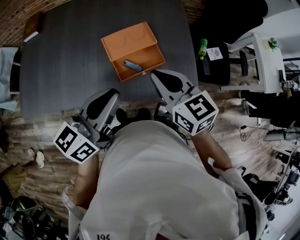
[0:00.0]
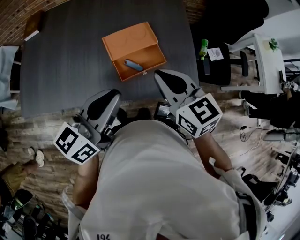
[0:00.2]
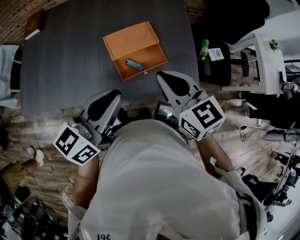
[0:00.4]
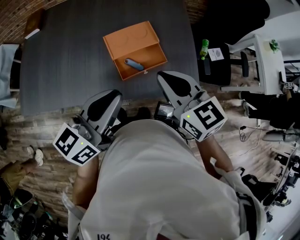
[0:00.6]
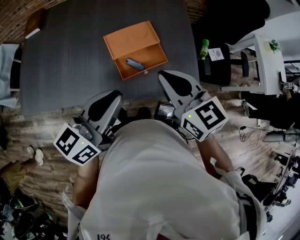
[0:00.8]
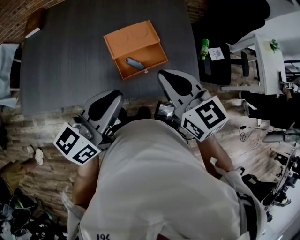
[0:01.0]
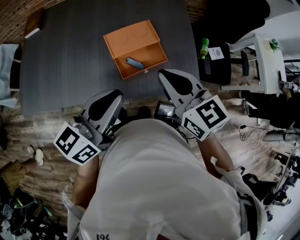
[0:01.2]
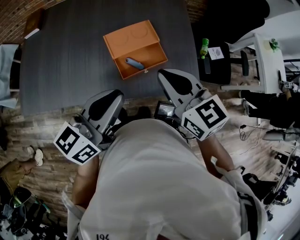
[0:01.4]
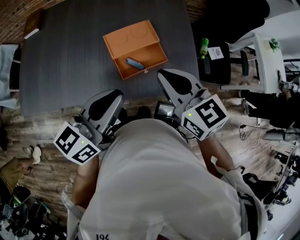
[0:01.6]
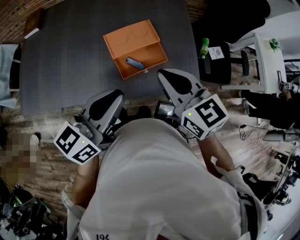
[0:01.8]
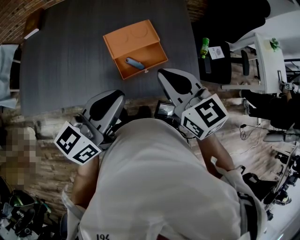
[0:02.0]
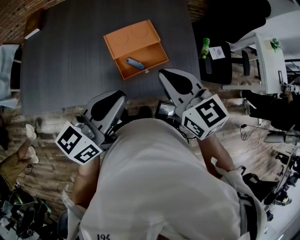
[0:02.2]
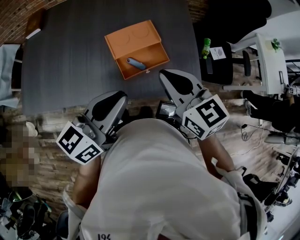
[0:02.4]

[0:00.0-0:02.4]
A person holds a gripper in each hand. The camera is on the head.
0:00.0 to 0:01.2: The grippers move only a little.
0:01.2 to 0:02.4: Both grippers stay about where they are.

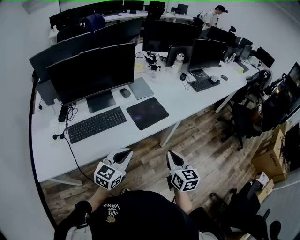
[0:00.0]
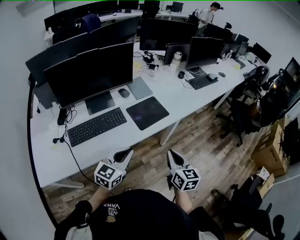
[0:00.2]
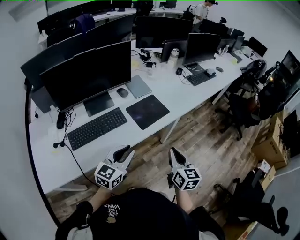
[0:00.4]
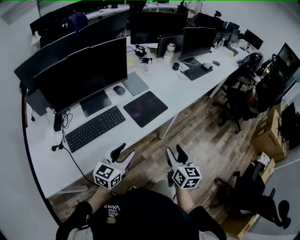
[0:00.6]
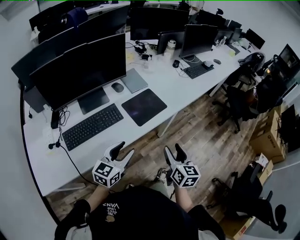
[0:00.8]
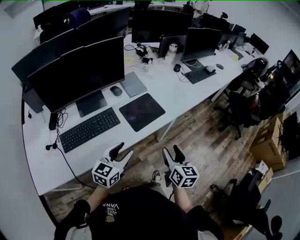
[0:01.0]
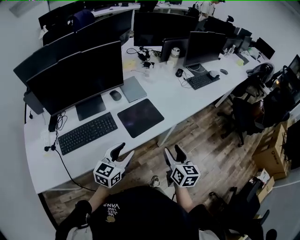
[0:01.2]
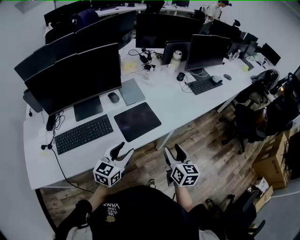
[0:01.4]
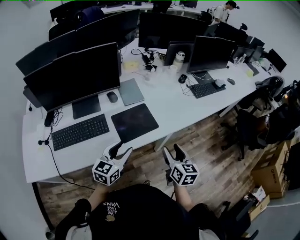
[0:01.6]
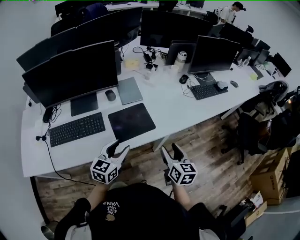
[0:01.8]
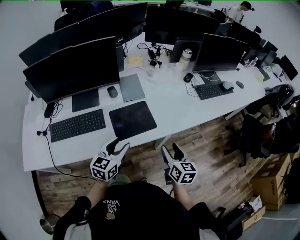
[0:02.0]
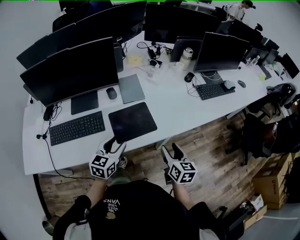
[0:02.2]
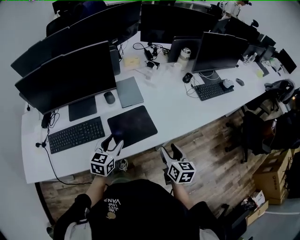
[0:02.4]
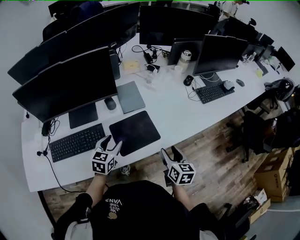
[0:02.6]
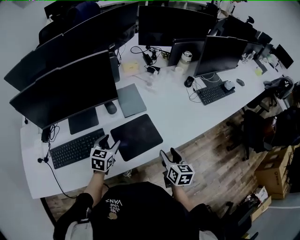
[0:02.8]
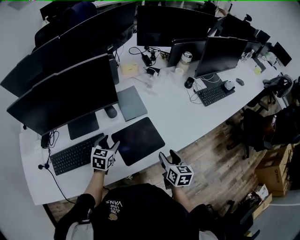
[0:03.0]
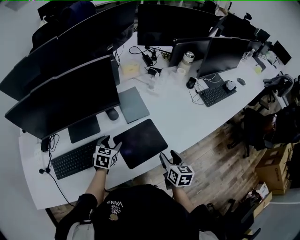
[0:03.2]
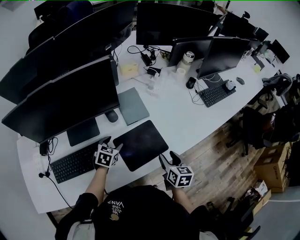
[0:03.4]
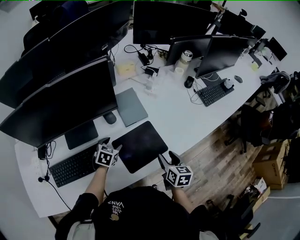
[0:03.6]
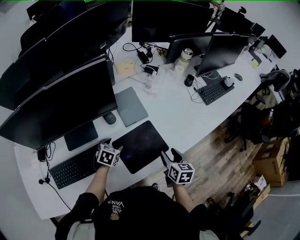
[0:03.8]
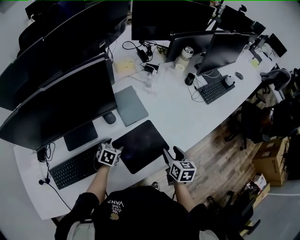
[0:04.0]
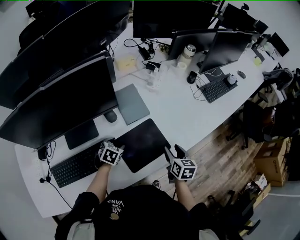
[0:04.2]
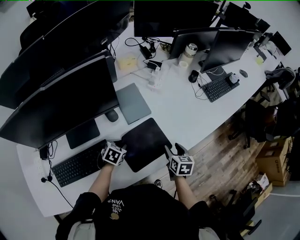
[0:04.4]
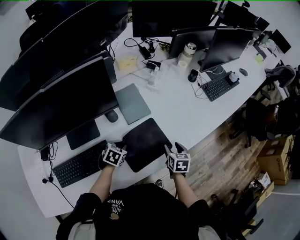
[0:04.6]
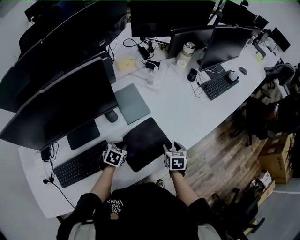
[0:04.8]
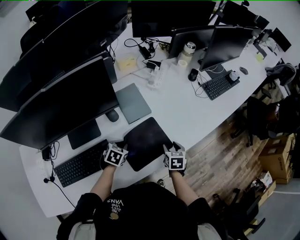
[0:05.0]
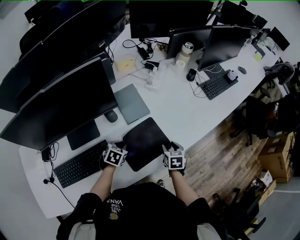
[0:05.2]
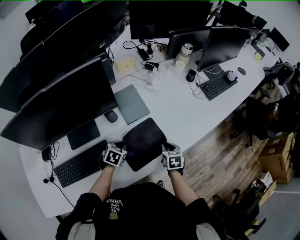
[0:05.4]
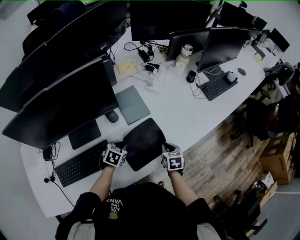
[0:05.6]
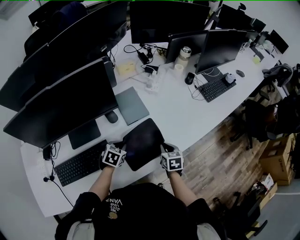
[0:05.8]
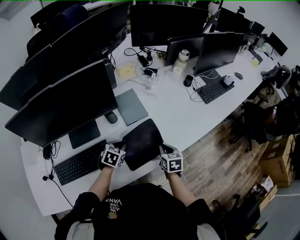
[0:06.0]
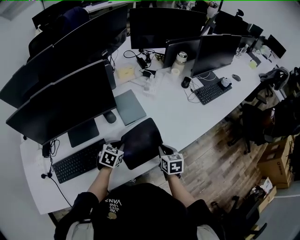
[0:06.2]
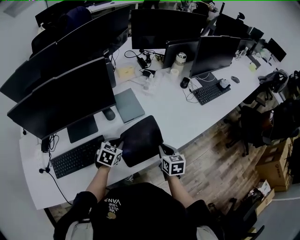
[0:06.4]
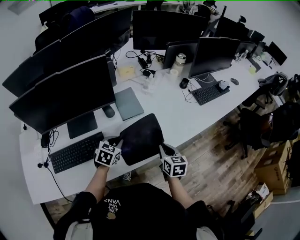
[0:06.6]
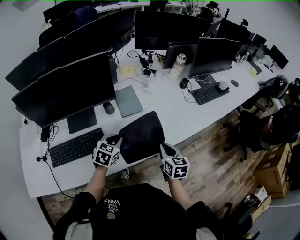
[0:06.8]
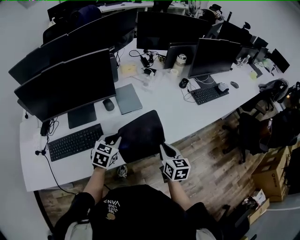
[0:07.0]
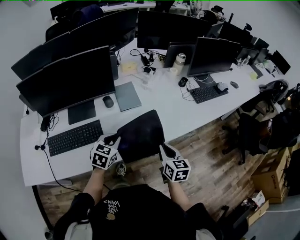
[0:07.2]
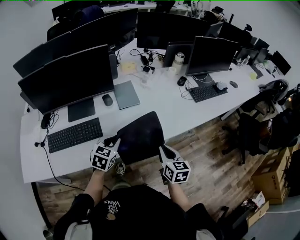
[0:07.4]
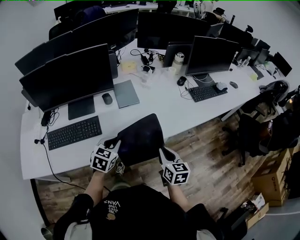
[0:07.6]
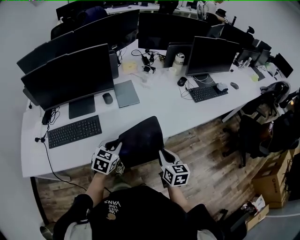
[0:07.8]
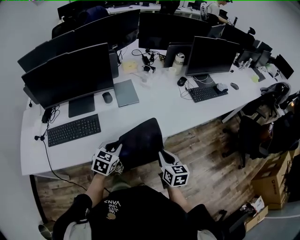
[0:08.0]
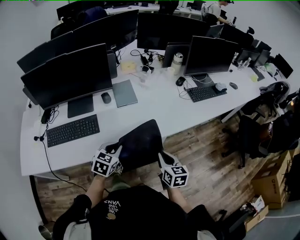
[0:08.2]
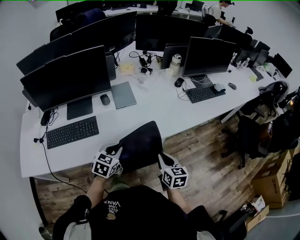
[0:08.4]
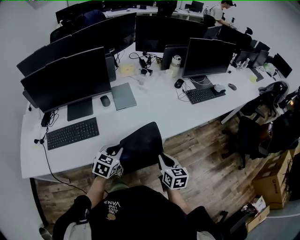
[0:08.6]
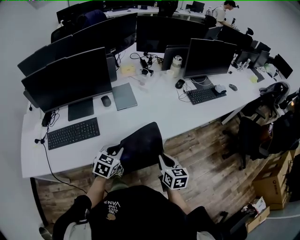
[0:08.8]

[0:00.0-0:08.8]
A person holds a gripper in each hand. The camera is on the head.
0:00.0 to 0:01.4: Both grippers travel together forward, approximately 15 cm. The right gripper opens, while the left gripper opens up.
0:01.4 to 0:03.0: The right gripper moves forward and downward, roughly 15 cm. The left gripper travels forward, downward and to the left by roughly 25 cm, and turns by about 30 degrees.
0:03.0 to 0:04.4: The left gripper travels downward by roughly 10 cm, swivels approximately 30 degrees, and closes, while the right gripper travels downward and forward by about 10 cm.
0:04.4 to 0:05.8: The right gripper closes.
0:05.8 to 0:07.4: Both grippers move upward, backward and to the right, approximately 20 cm. The left gripper swivels approximately 20 degrees, while the right gripper changes its angle by roughly 20 degrees.
0:07.4 to 0:08.8: The right gripper changes place by roughly 5 cm, while the left gripper changes place by about 5 cm.

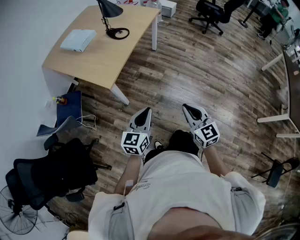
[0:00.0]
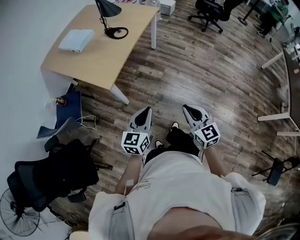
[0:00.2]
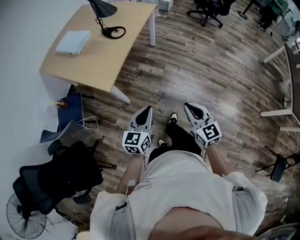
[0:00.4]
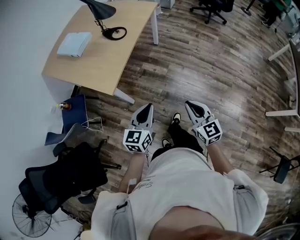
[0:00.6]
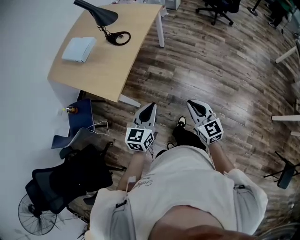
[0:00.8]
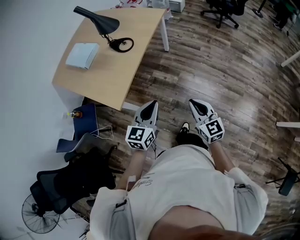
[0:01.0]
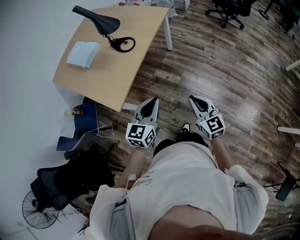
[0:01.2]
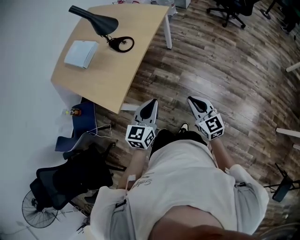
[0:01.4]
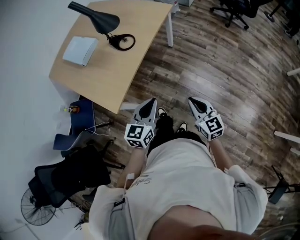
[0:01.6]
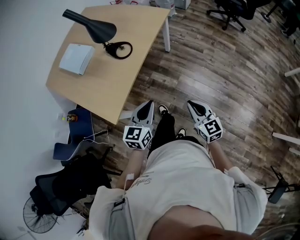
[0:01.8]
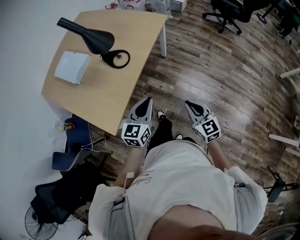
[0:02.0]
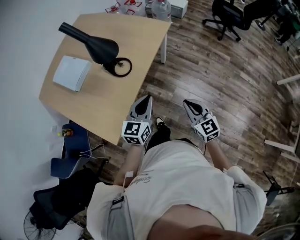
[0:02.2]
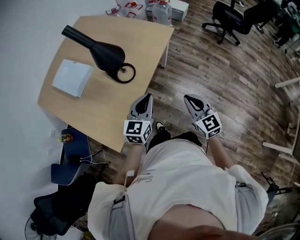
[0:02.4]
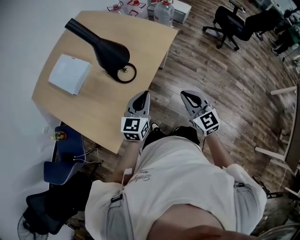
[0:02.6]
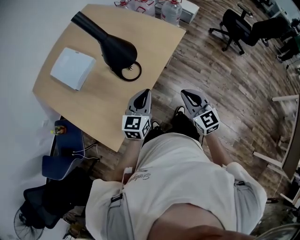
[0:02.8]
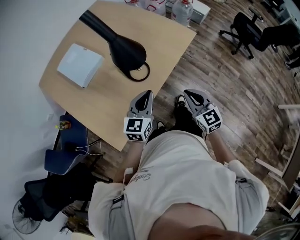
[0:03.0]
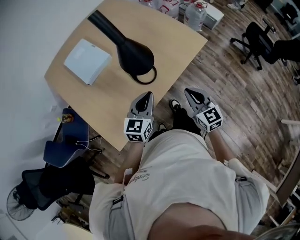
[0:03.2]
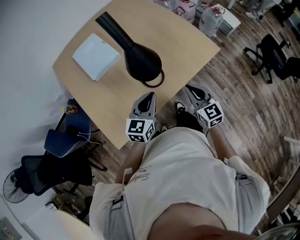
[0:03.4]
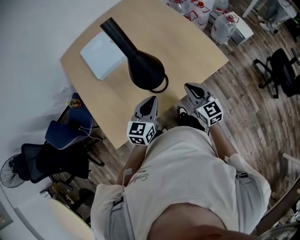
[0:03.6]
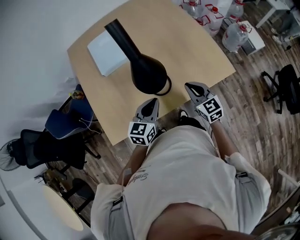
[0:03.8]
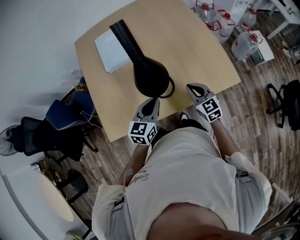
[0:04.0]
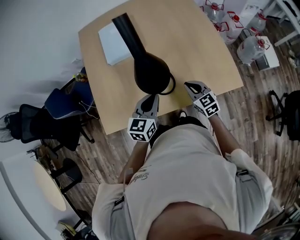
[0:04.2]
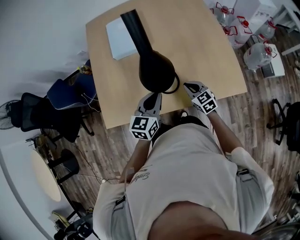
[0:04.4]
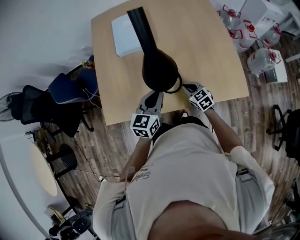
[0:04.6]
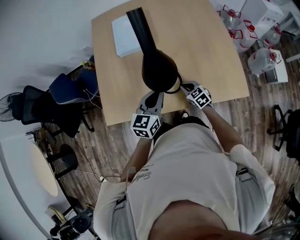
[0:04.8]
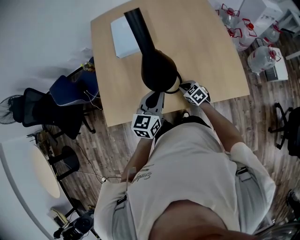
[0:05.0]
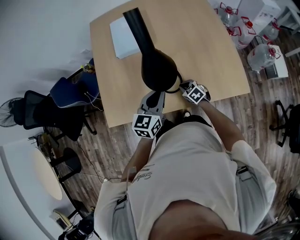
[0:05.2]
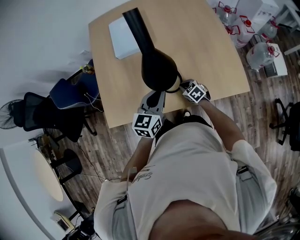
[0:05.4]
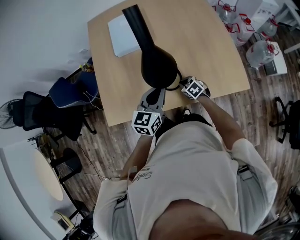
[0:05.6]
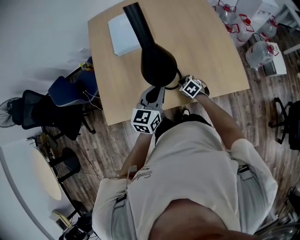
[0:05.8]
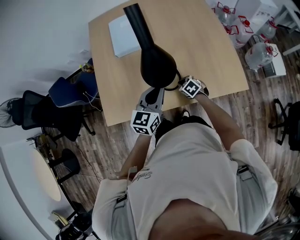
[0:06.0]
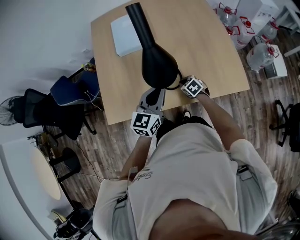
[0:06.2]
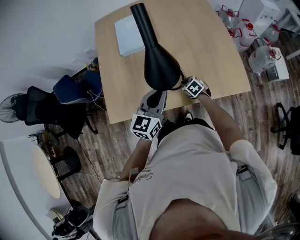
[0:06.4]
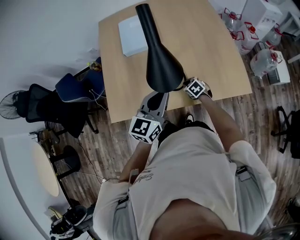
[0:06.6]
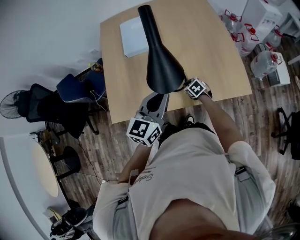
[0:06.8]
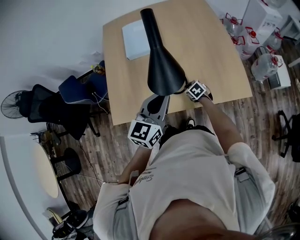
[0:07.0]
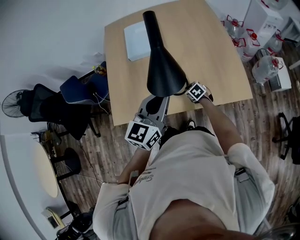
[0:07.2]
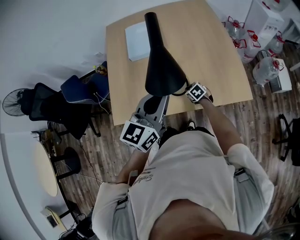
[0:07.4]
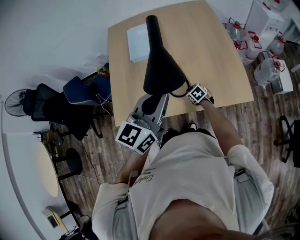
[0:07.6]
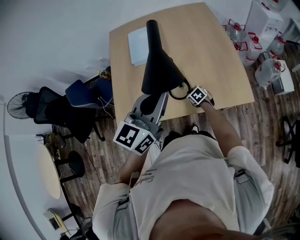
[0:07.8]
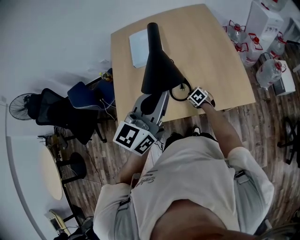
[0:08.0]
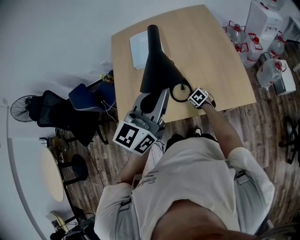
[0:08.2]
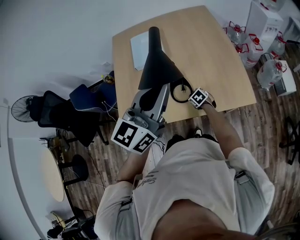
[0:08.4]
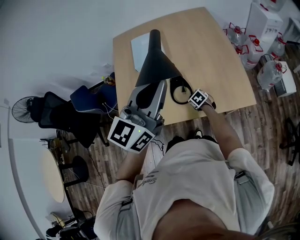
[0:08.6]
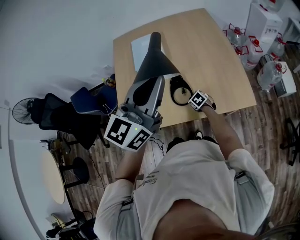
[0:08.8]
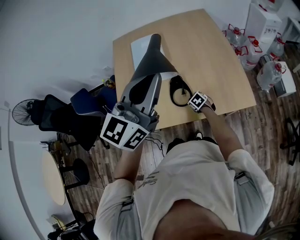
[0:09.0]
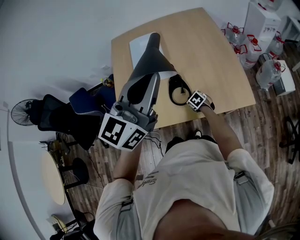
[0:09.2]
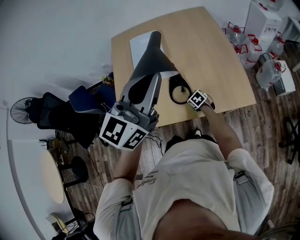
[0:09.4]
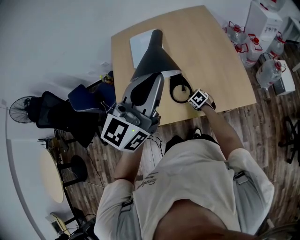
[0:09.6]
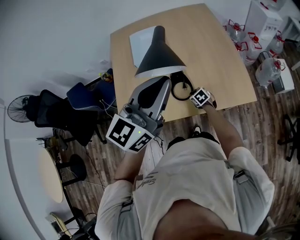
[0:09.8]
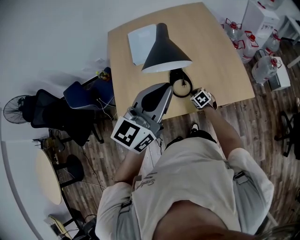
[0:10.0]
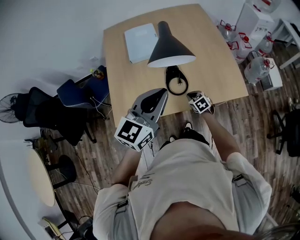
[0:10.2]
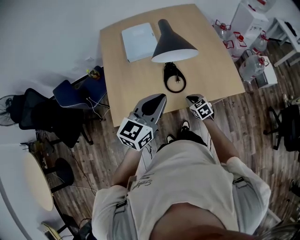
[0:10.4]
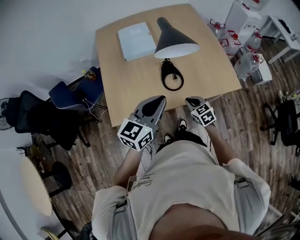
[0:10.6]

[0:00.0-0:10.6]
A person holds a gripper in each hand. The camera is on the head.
0:00.0 to 0:01.6: Both grippers travel together forward, approximately 30 cm.
0:01.6 to 0:03.0: The grippers both shift forward by roughly 35 cm.
0:03.0 to 0:04.6: The right gripper changes place by some 35 cm, and turns by roughly 60 degrees. The left gripper ends up about 15 cm from where it was, and swivels about 40 degrees.
0:04.6 to 0:06.0: The right gripper moves downward, approximately 5 cm, and rotates approximately 20 degrees.
0:06.0 to 0:07.6: The left gripper is displaced upward by some 20 cm.
0:07.6 to 0:09.0: The left gripper shifts roughly 10 cm upward.
0:09.0 to 0:10.6: The left gripper shifts approximately 20 cm downward, to the left and backward, and swivels about 20 degrees; the right gripper goes some 20 cm upward and backward, and changes its angle by approximately 20 degrees.

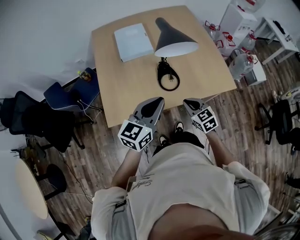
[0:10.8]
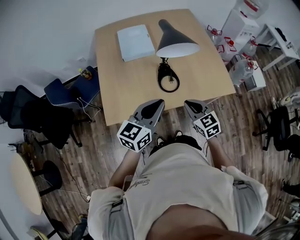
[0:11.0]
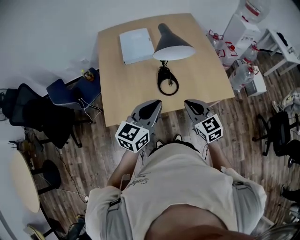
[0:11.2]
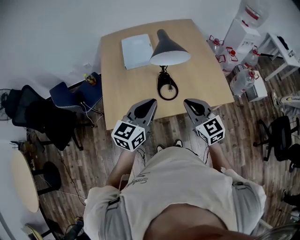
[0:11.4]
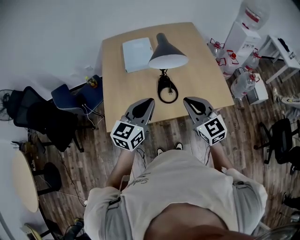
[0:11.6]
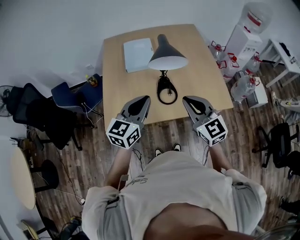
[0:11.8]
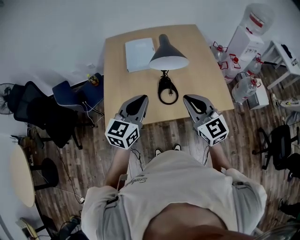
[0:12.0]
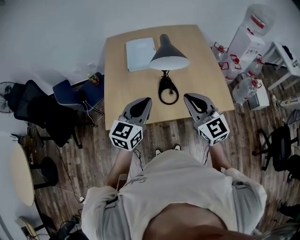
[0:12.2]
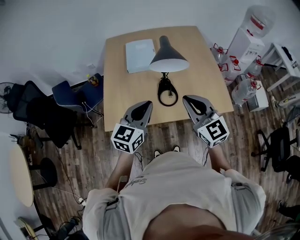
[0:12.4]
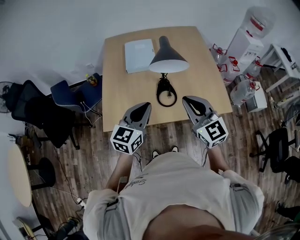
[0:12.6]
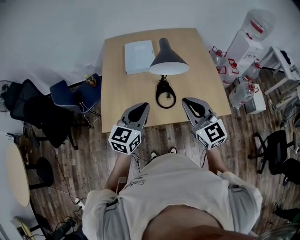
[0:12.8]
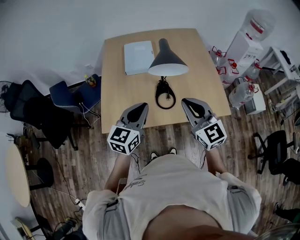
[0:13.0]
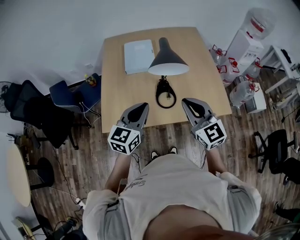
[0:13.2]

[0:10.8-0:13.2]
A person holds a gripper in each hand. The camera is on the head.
0:10.8 to 0:12.0: The left gripper heads upward, covering approximately 5 cm, while the right gripper heads upward, covering approximately 20 cm, and turns by about 30 degrees.
0:12.0 to 0:13.2: The grippers move only a little.
